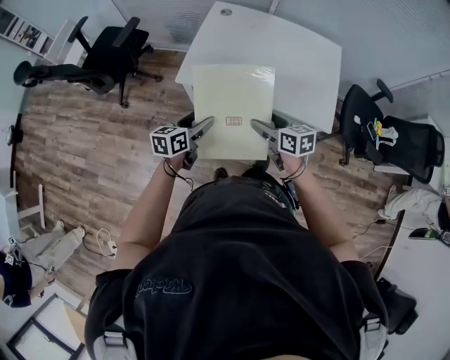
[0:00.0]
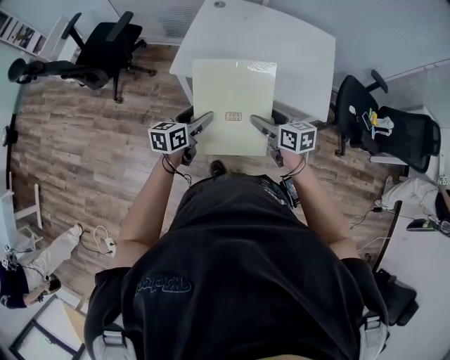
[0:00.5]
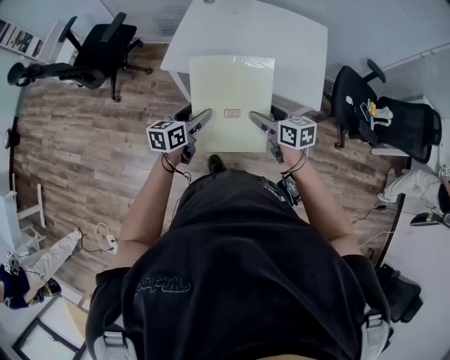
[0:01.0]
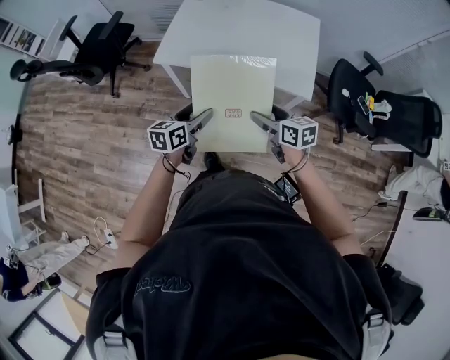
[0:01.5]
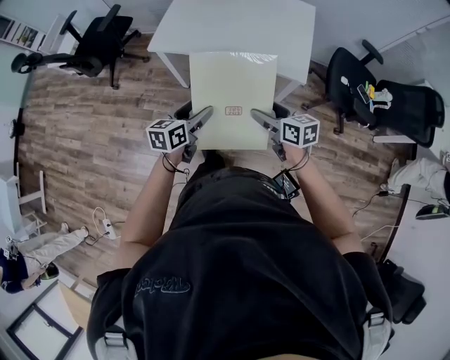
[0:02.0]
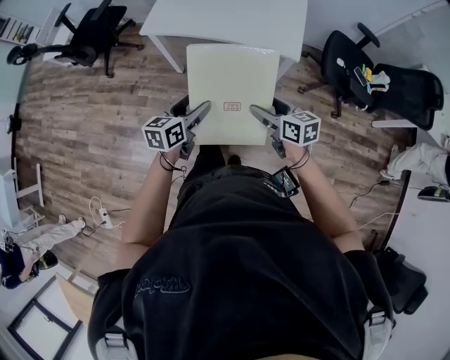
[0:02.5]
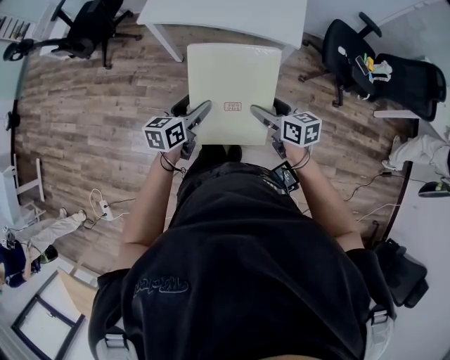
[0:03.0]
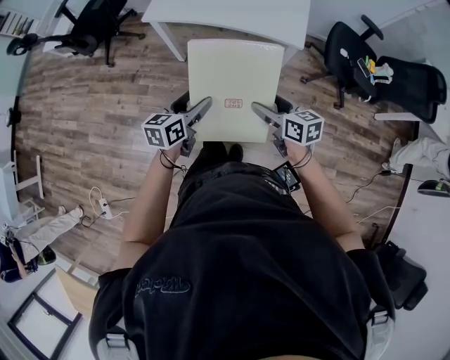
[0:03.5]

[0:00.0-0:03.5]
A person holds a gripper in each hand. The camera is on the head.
0:00.0 to 0:02.0: The two grippers go approximately 25 cm backward and to the right.
0:02.0 to 0:03.5: The two grippers go approximately 10 cm backward.

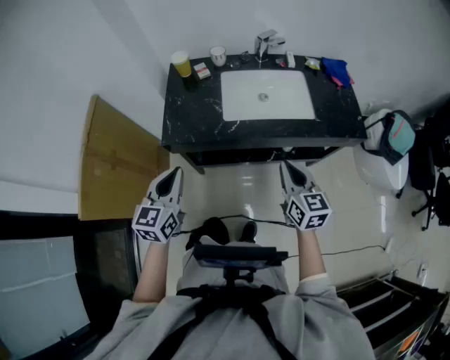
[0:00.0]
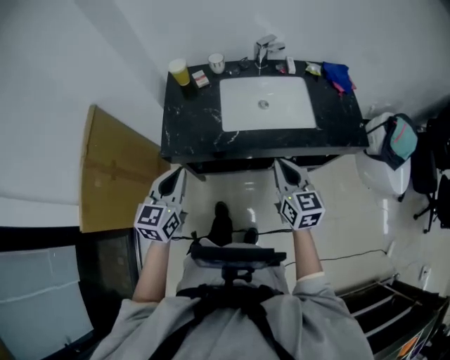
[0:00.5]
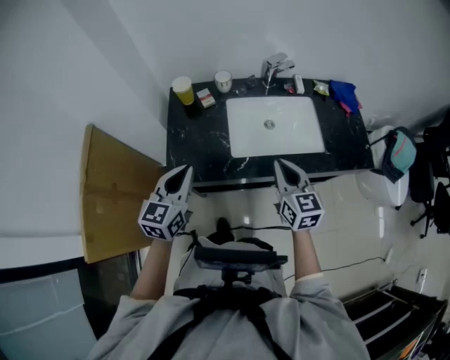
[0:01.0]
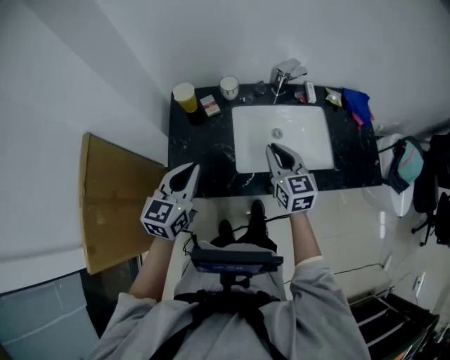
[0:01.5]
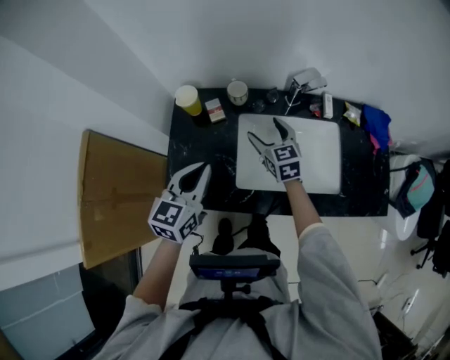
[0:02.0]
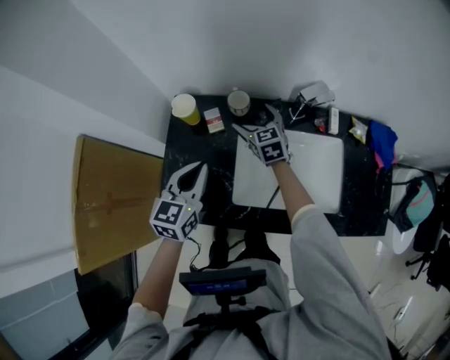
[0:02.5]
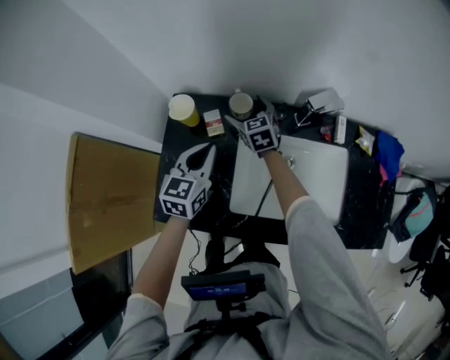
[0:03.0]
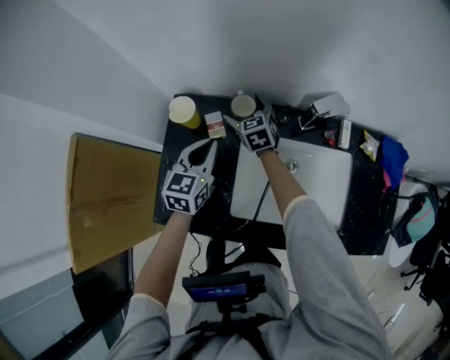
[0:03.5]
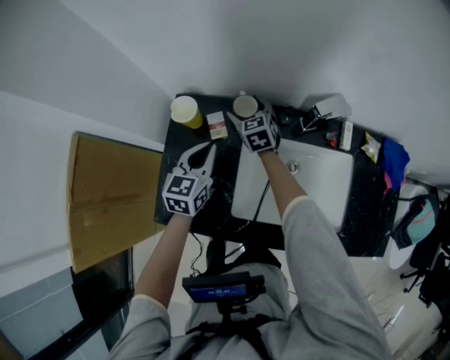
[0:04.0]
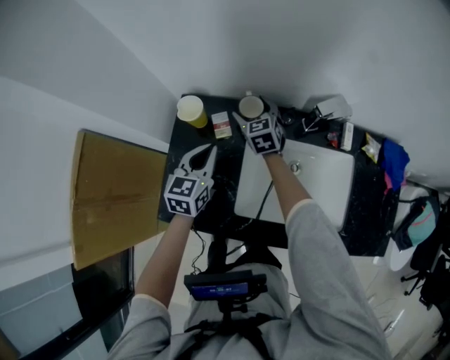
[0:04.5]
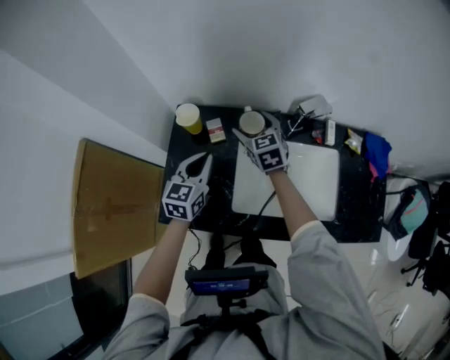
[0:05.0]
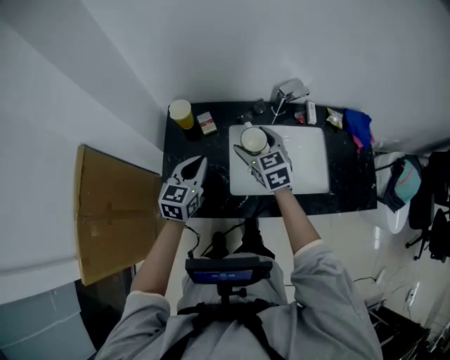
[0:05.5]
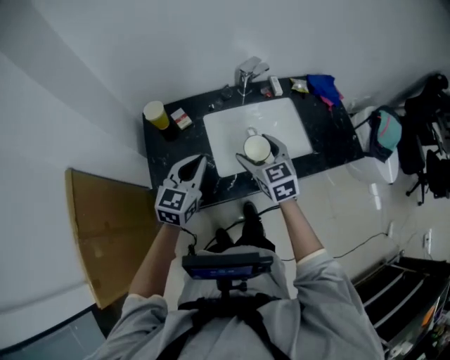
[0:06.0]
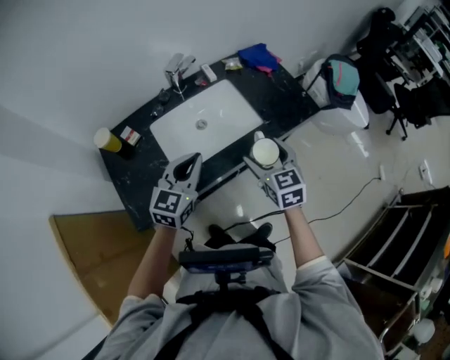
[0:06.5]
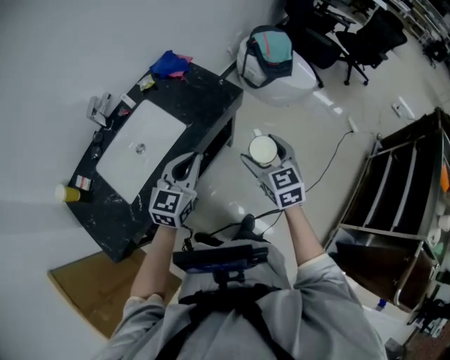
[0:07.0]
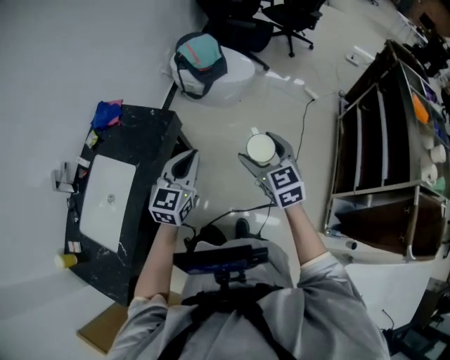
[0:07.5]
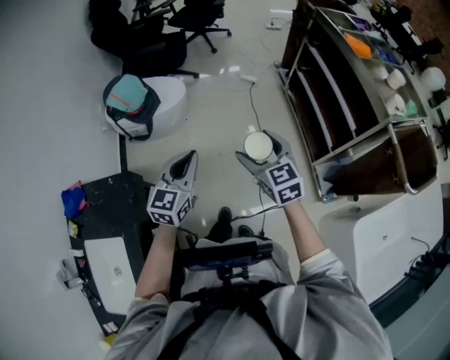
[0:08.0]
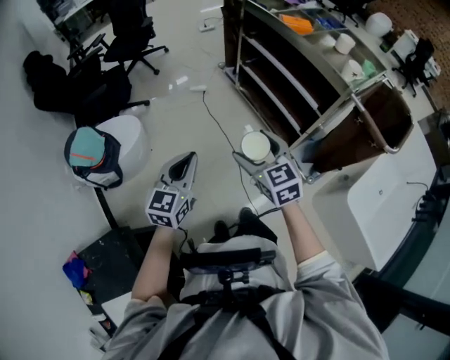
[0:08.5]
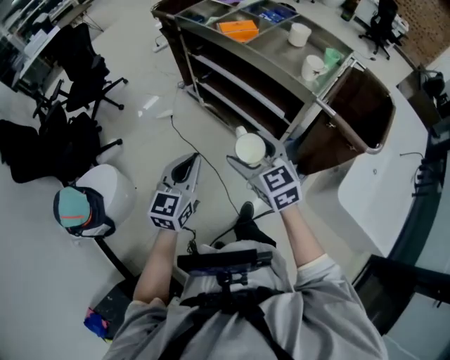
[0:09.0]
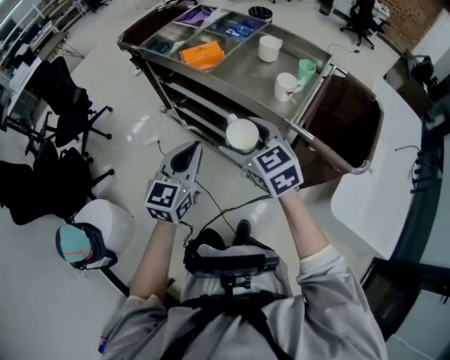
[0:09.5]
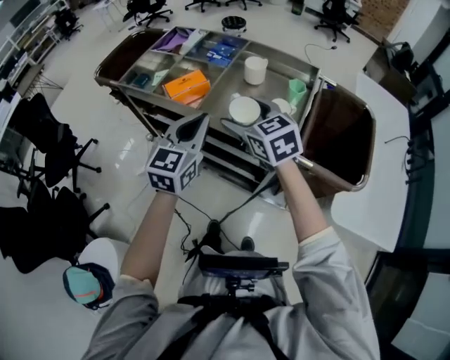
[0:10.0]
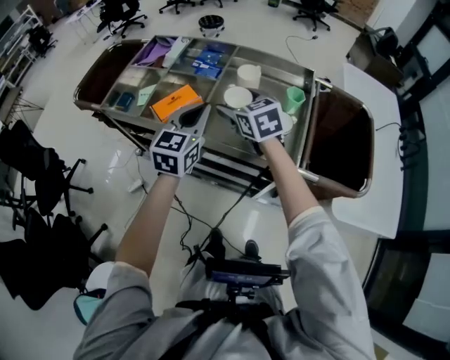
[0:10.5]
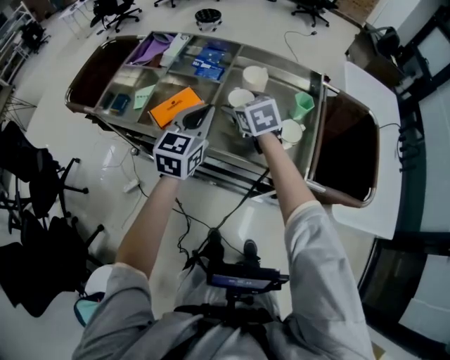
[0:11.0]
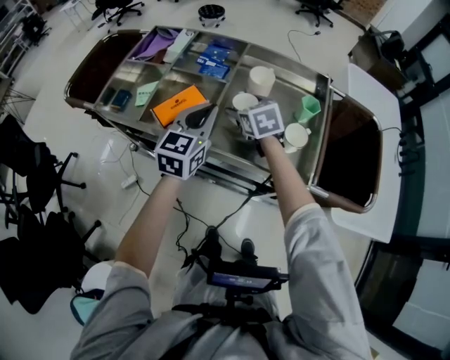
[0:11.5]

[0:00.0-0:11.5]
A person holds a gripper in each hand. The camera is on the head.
0:00.0 to 0:02.0: The two grippers go about 35 cm forward. The right gripper opens.
0:02.0 to 0:04.0: The left gripper travels forward and downward by about 20 cm. The right gripper heads forward, to the left and downward, covering approximately 20 cm.
0:04.0 to 0:06.0: The right gripper goes approximately 35 cm backward and upward, and turns by some 20 degrees; the left gripper moves backward and upward, some 20 cm, and swivels roughly 30 degrees.
0:06.0 to 0:07.5: Both grippers are carried roughly 60 cm. The right gripper changes its angle by roughly 60 degrees, while the left gripper changes its angle by roughly 60 degrees.
0:07.5 to 0:09.5: The pair of grippers is taken some 70 cm. The right gripper changes its angle by some 60 degrees, while the left gripper swivels some 70 degrees.
0:09.5 to 0:11.5: The two grippers go approximately 40 cm forward. The right gripper changes its angle by roughly 30 degrees. Meanwhile the left gripper swivels roughly 20 degrees.

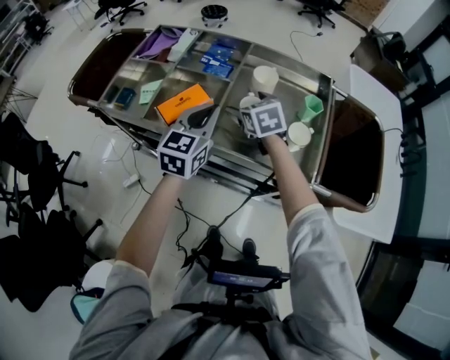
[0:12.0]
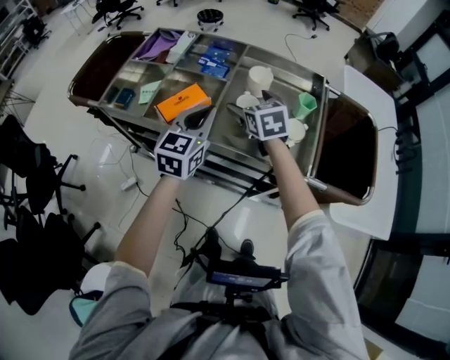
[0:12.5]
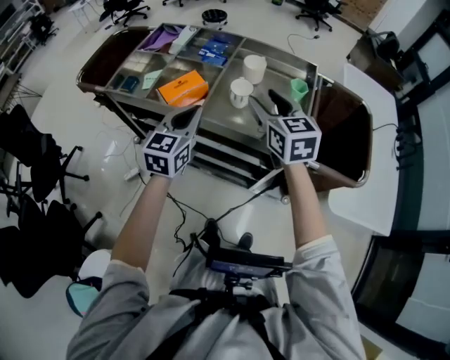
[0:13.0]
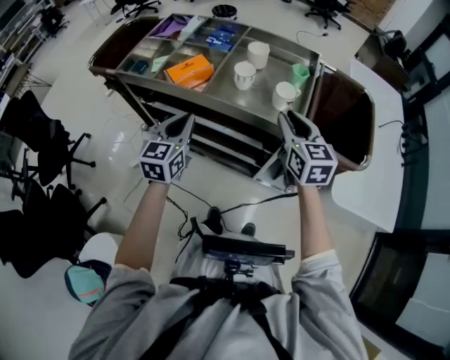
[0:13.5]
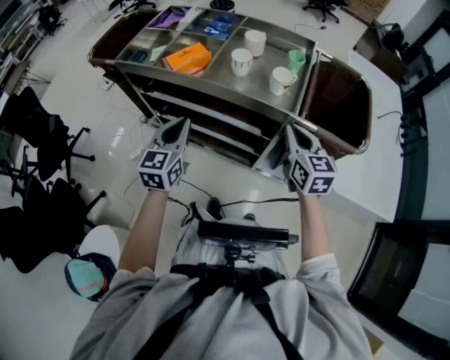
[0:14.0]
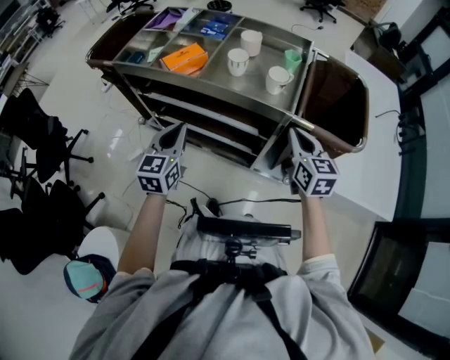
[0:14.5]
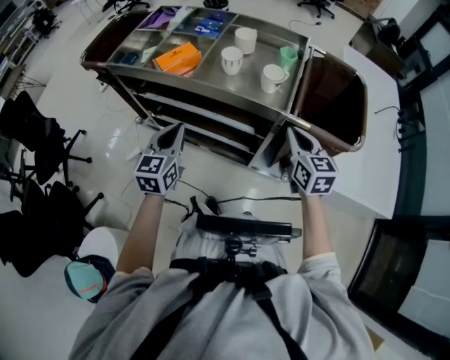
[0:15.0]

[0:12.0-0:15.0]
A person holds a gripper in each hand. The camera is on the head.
0:12.0 to 0:13.5: The right gripper heads backward, to the right and upward, covering some 30 cm, rotates some 20 degrees, and closes its fingers. The left gripper moves backward, some 20 cm.
0:13.5 to 0:15.0: The left gripper goes some 5 cm backward. The right gripper travels backward, to the right and downward by about 10 cm.

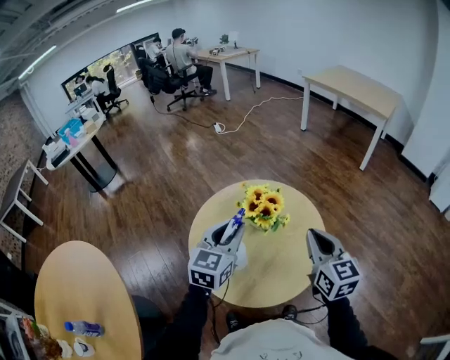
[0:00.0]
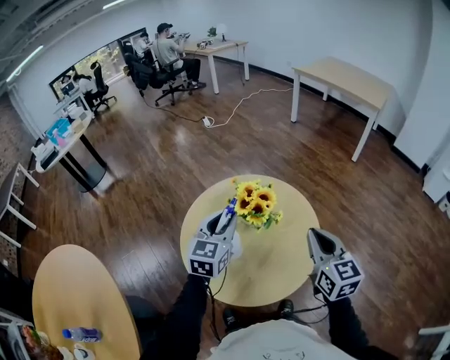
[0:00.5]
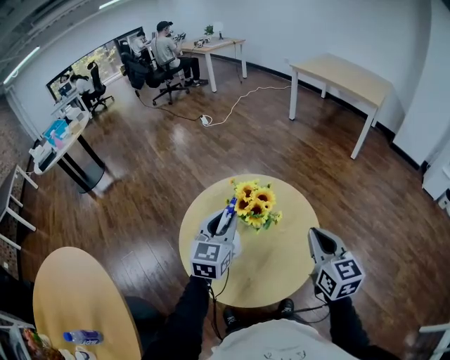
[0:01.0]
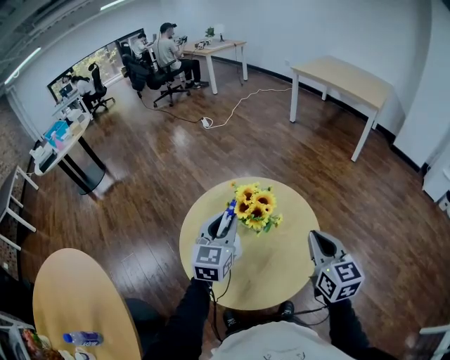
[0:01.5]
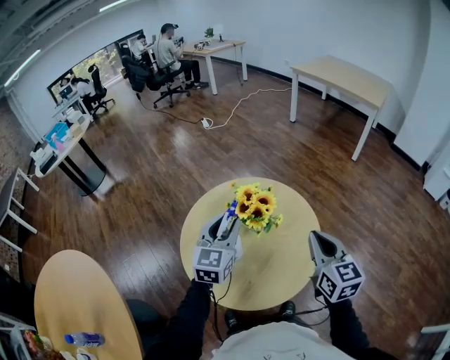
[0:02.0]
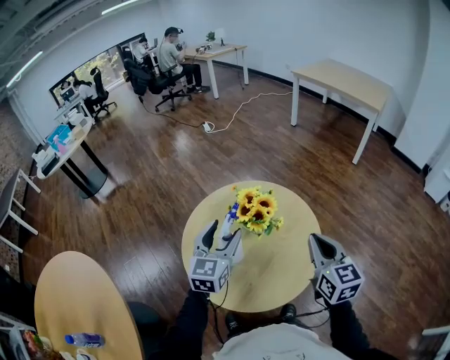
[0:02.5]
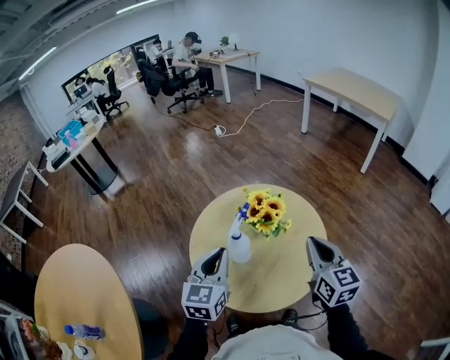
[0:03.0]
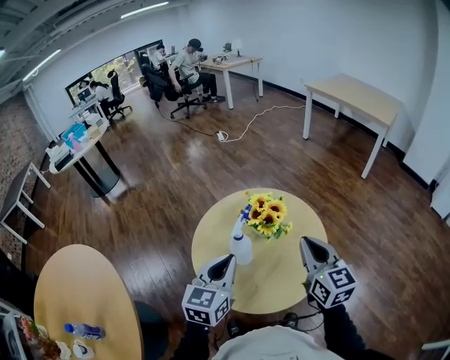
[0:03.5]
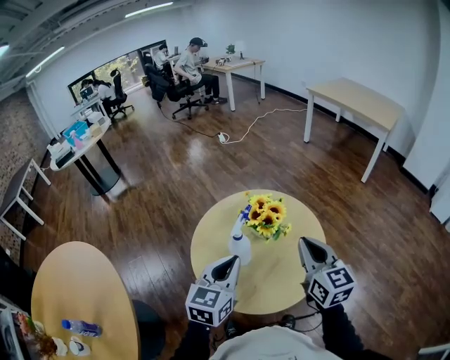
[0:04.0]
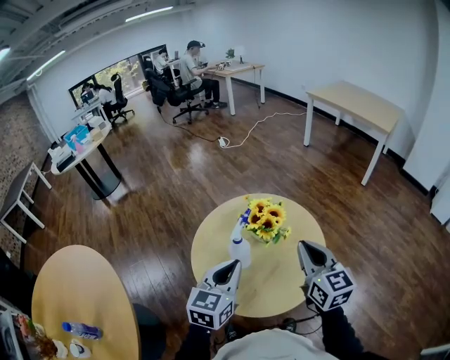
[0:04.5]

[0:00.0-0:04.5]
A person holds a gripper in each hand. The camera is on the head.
0:00.0 to 0:02.0: The left gripper goes roughly 5 cm forward.
0:02.0 to 0:04.5: The right gripper goes roughly 5 cm to the left, while the left gripper moves backward, some 15 cm, and closes its fingers.

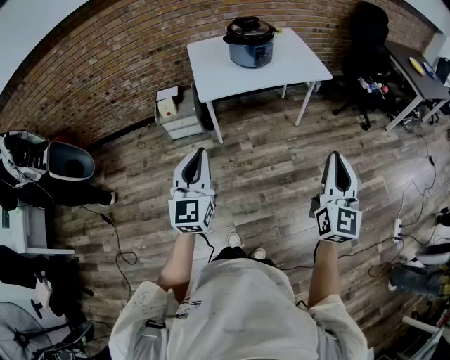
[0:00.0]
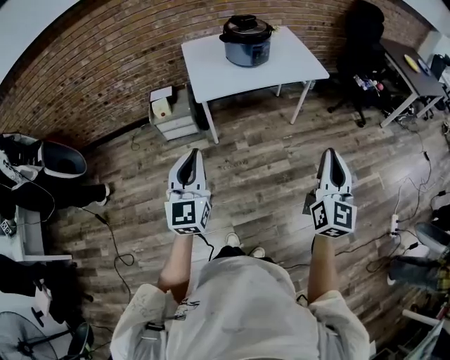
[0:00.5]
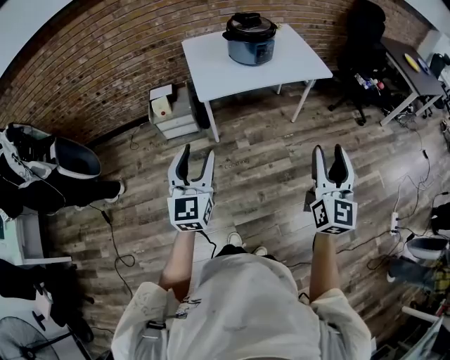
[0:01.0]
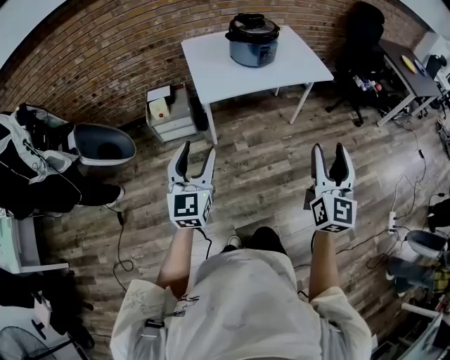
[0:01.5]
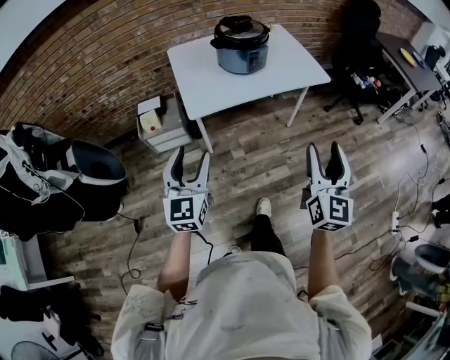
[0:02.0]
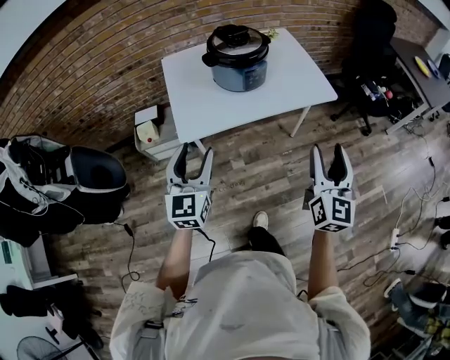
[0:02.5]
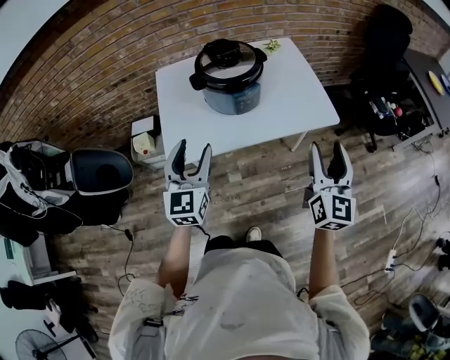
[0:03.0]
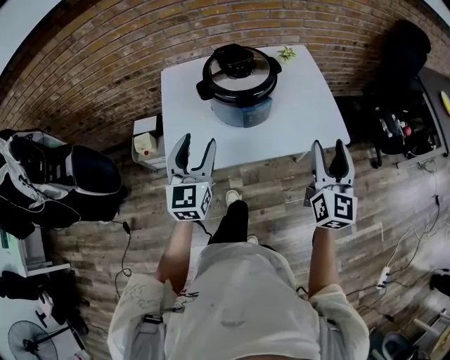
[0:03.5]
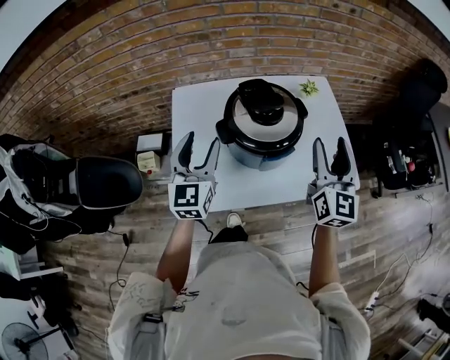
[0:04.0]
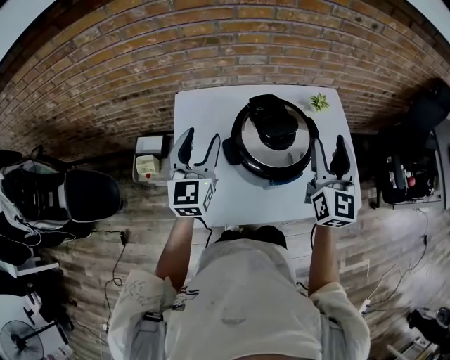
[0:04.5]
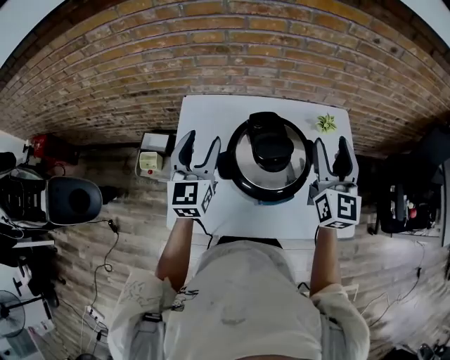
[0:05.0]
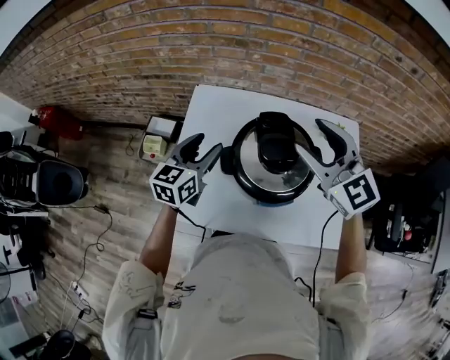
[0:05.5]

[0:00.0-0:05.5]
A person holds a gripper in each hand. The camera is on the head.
0:00.0 to 0:02.0: The two grippers go approximately 15 cm forward and to the left. The right gripper opens its fingers. Meanwhile the left gripper opens its fingers.
0:02.0 to 0:03.5: The grippers both shift forward by roughly 35 cm.
0:03.5 to 0:05.5: The left gripper shifts by roughly 25 cm, and rotates about 20 degrees; the right gripper shifts by roughly 35 cm, and swivels roughly 60 degrees.
